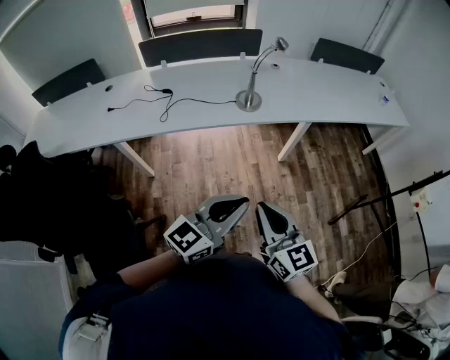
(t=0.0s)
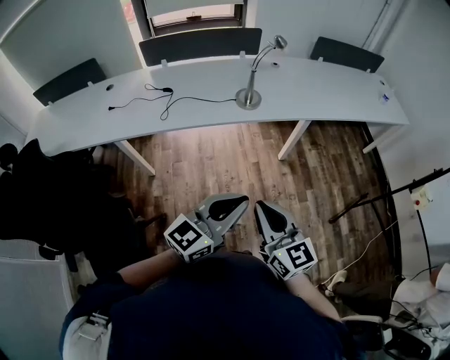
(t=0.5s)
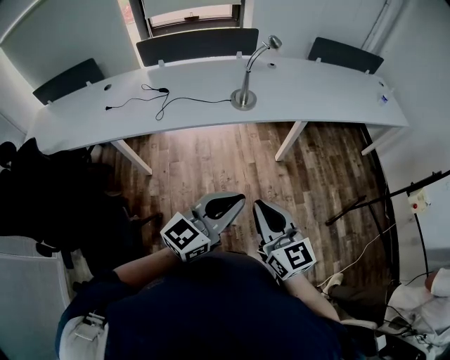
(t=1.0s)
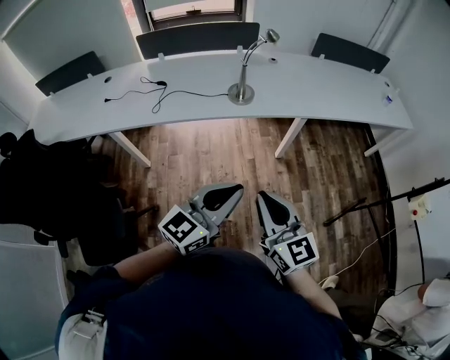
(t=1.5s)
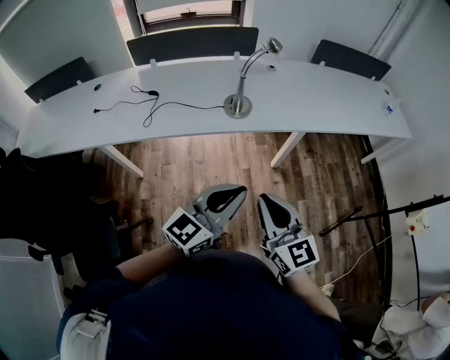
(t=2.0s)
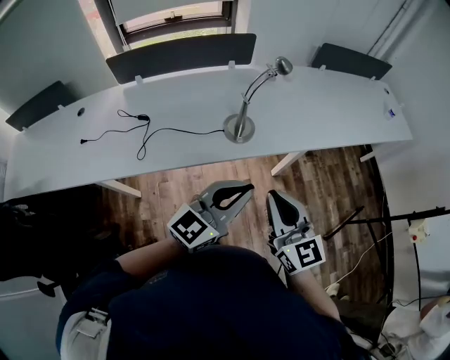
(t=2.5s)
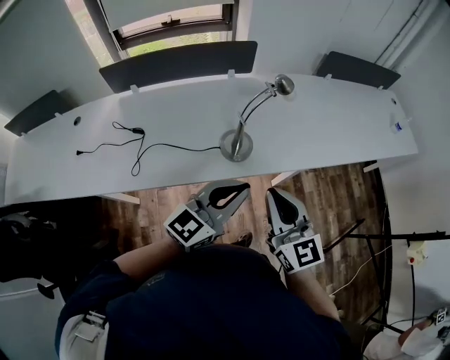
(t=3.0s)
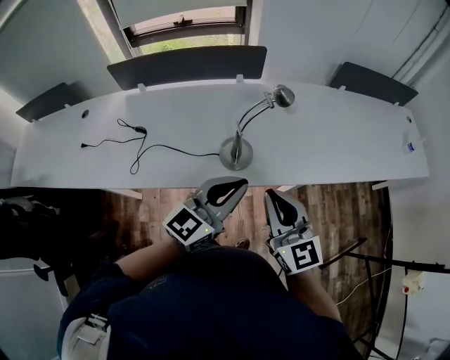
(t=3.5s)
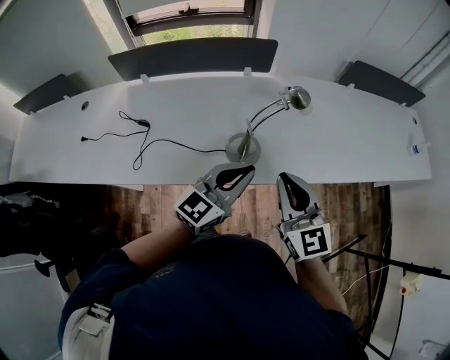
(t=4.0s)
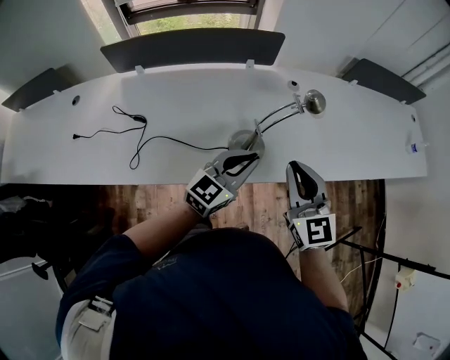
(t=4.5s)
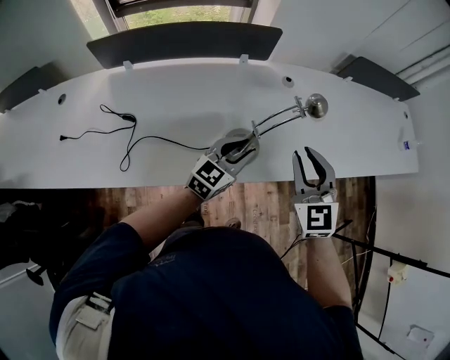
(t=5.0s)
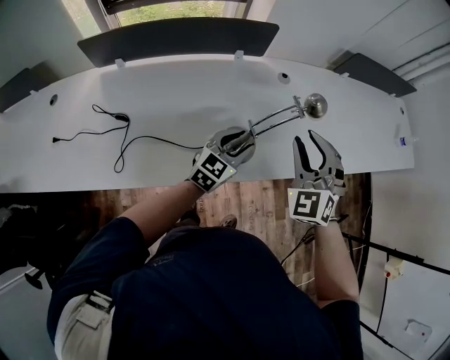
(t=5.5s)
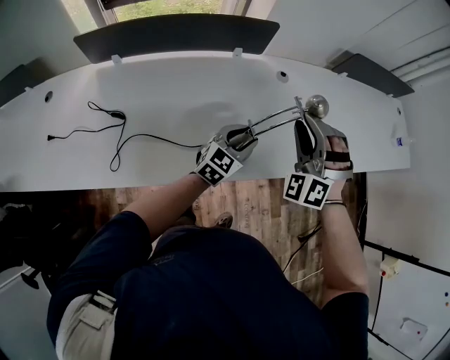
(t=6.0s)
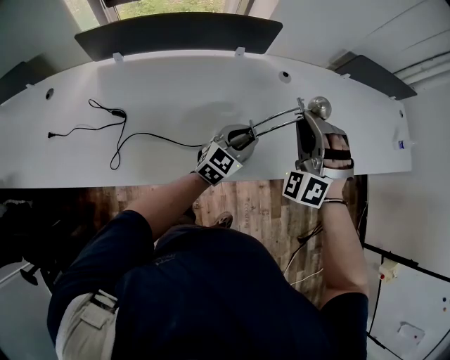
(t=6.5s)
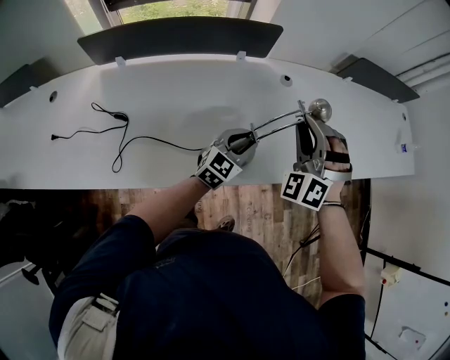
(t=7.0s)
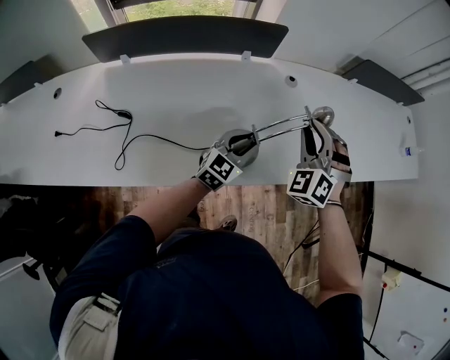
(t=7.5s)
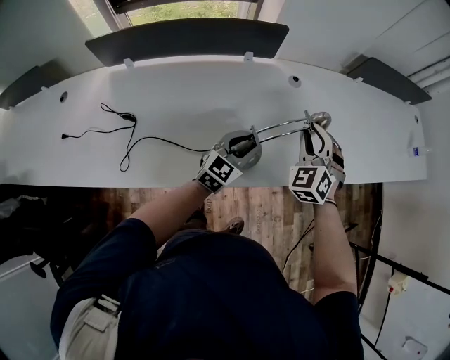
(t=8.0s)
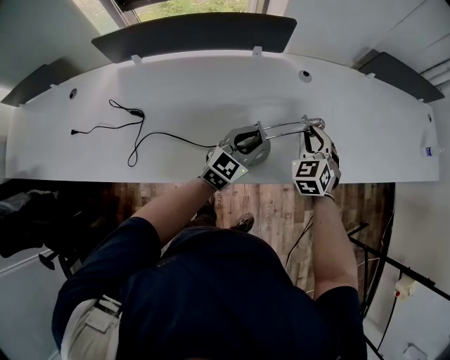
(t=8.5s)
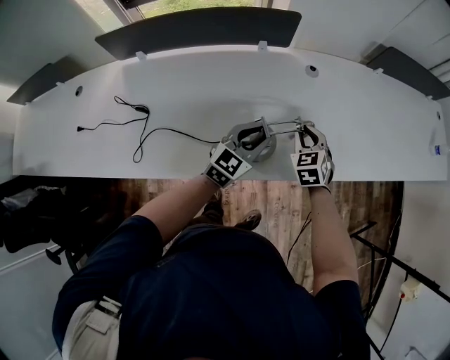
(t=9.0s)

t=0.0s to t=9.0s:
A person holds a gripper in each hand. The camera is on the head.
t=0.0s to t=2.0s: The right gripper is displaced forward and to the right by some 15 cm. Meanwhile the left gripper heads forward, covering about 15 cm.
t=2.0s to t=4.5s: The two grippers travel together, forward, about 40 cm.
t=4.5s to t=7.0s: The left gripper heads forward and downward, covering some 15 cm, and opens up; the right gripper travels forward by roughly 15 cm, twists about 70 degrees counterclockwise, seen from behind, and opens up.
t=7.0s to t=9.0s: The right gripper shifts roughly 20 cm downward, and rotates around the line of its fingers by some 50 degrees, clockwise from behind.

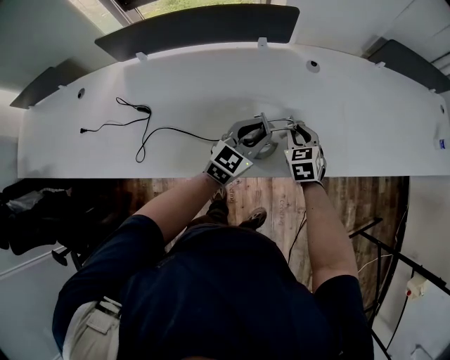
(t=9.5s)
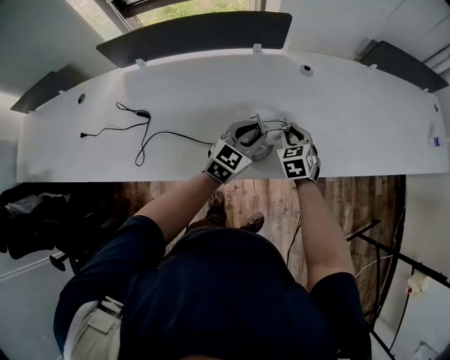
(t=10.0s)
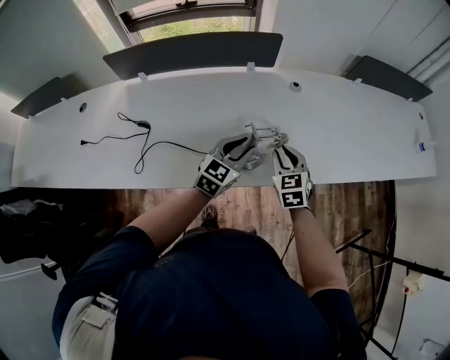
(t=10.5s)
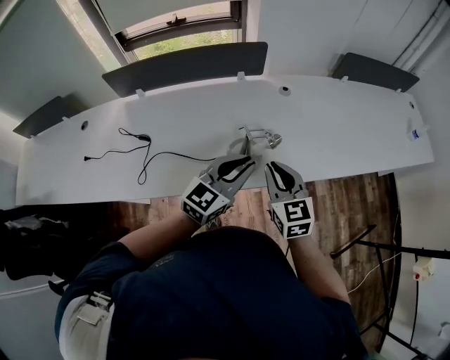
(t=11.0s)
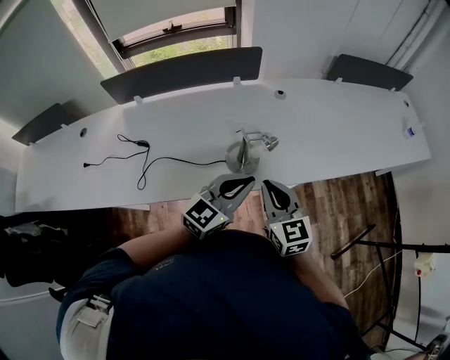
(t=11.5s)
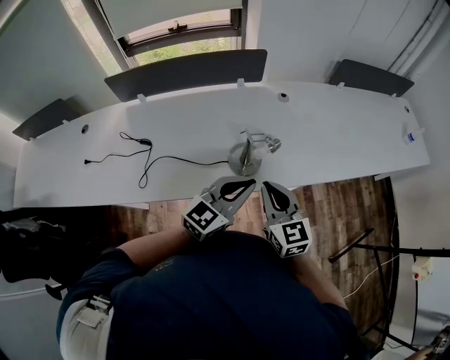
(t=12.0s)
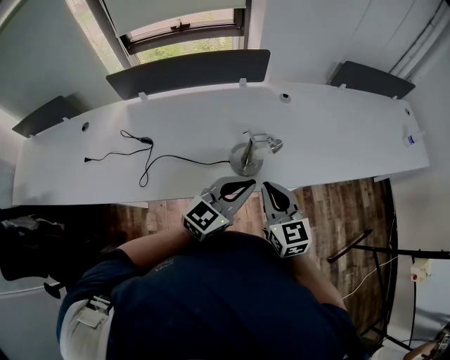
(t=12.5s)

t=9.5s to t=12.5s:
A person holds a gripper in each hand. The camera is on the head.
t=9.5s to t=11.0s: Both grippers travel together upward and backward, about 20 cm. The right gripper changes its angle by approximately 30 degrees.
t=11.0s to t=12.5s: The grippers both shift backward by roughly 5 cm.

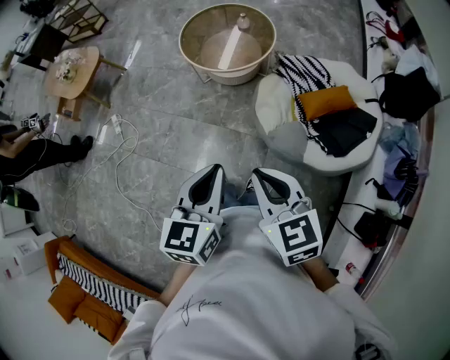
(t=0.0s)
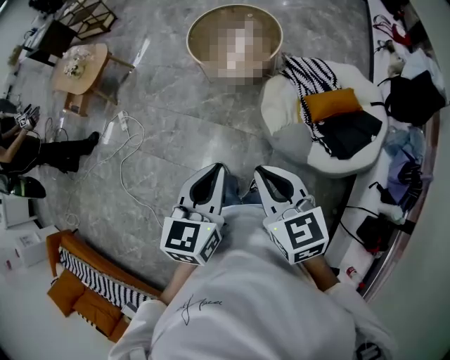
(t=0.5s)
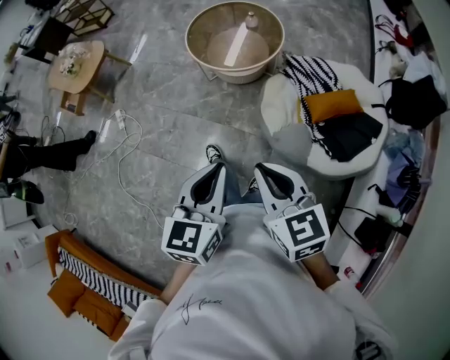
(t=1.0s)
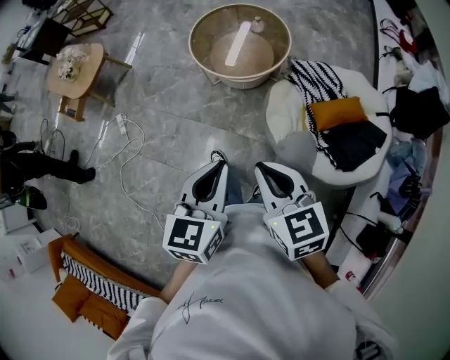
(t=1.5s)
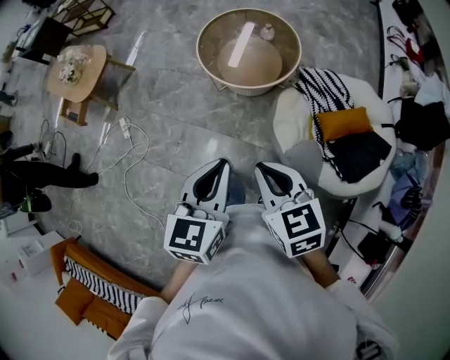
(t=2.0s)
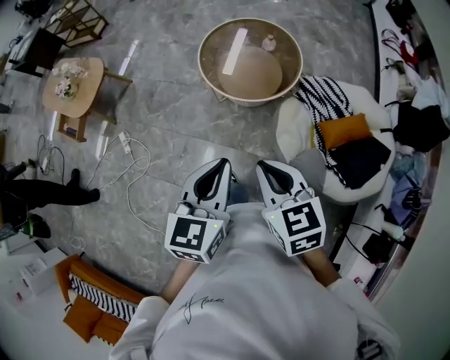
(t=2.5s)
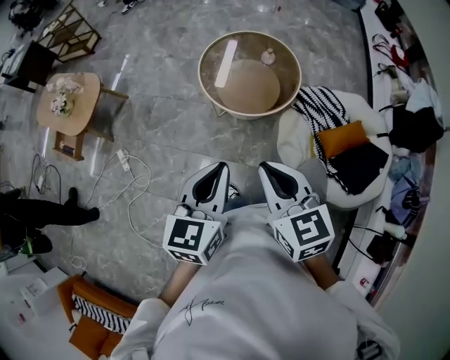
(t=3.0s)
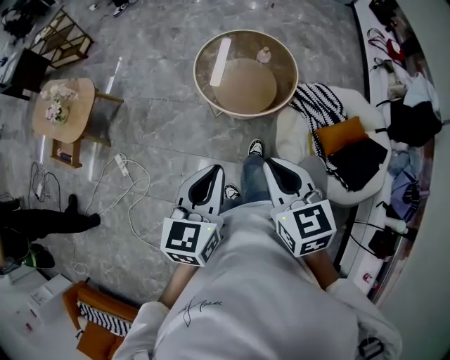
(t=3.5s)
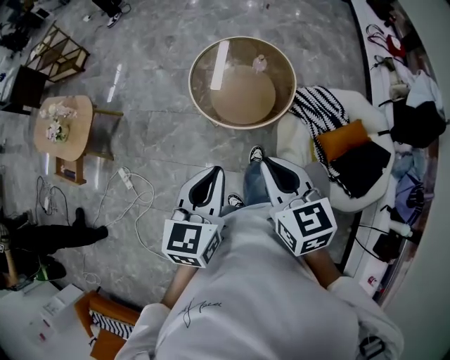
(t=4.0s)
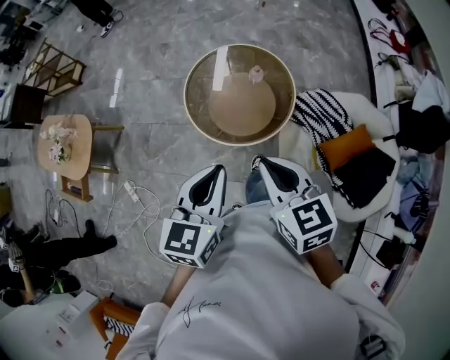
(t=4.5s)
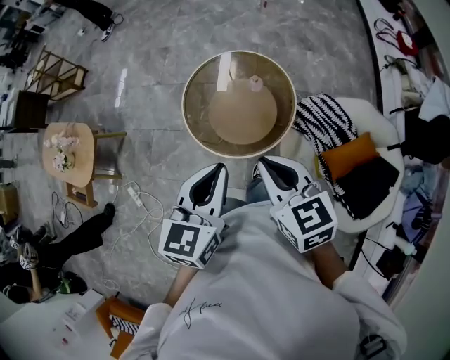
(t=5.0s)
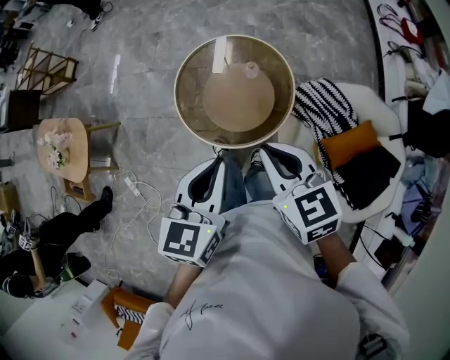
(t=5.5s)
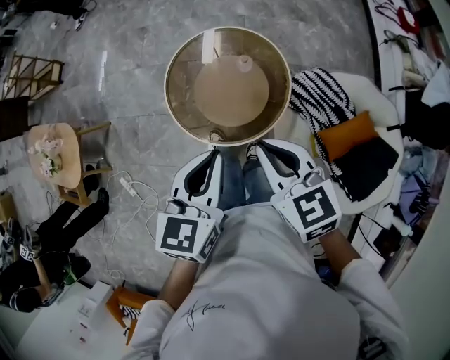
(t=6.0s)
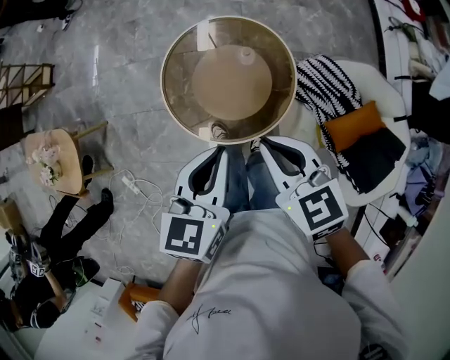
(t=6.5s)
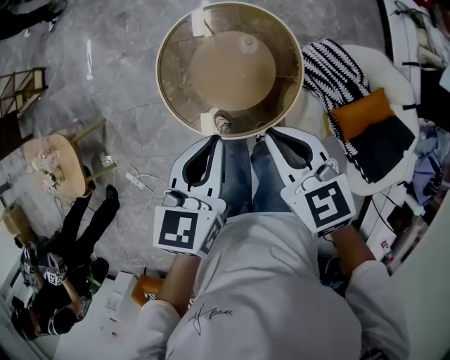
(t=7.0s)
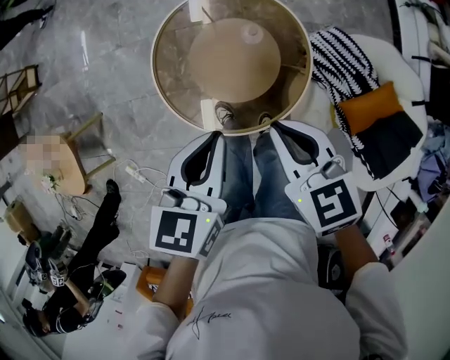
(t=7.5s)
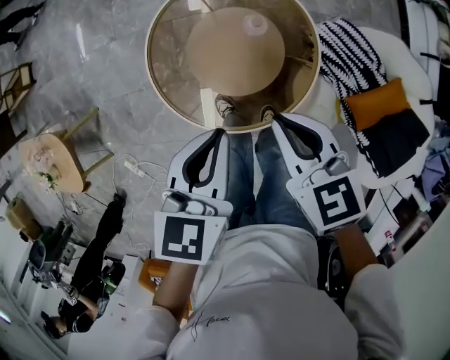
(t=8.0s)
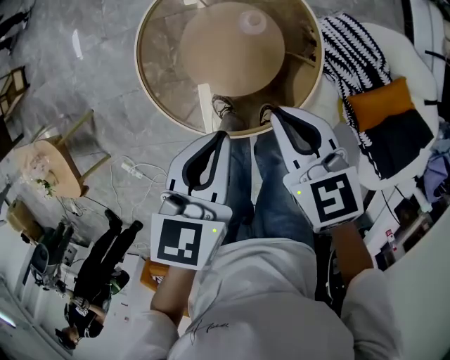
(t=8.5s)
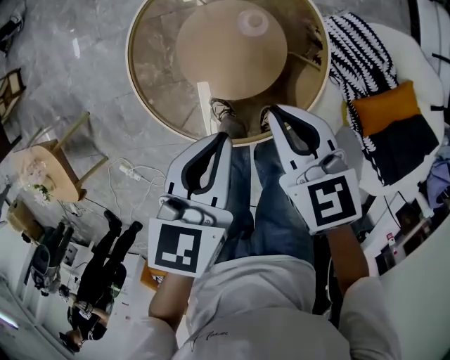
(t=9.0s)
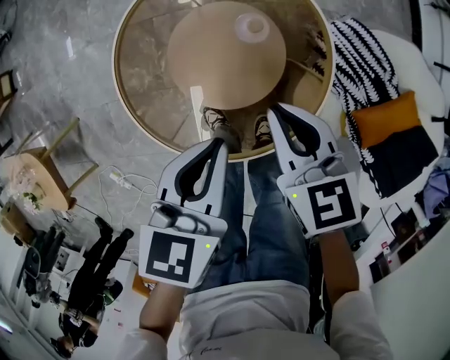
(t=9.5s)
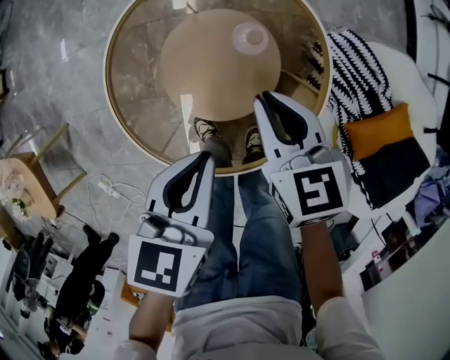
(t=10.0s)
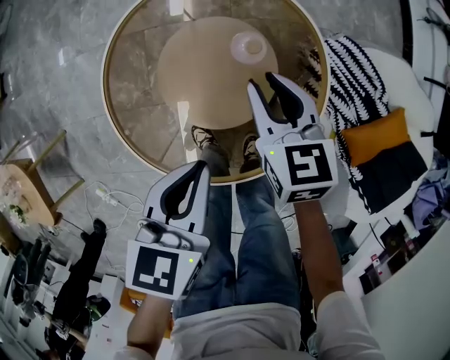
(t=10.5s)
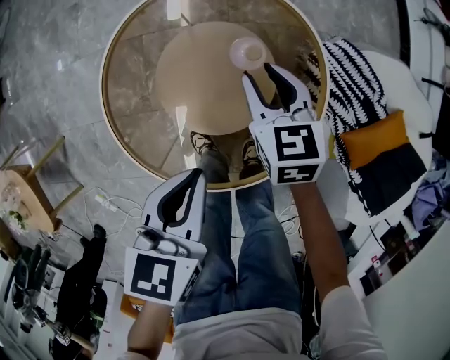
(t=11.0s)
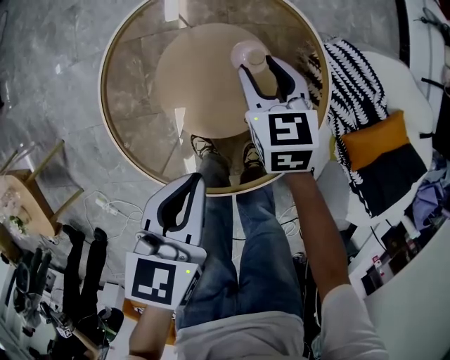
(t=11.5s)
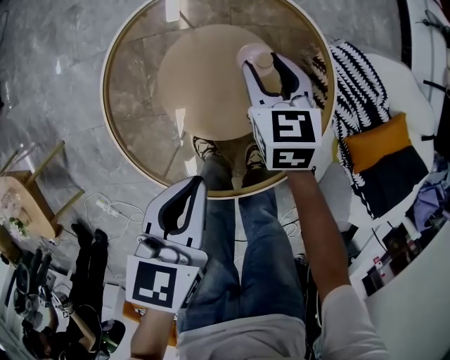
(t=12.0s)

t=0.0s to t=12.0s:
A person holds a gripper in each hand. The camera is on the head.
t=0.0s to t=2.0s: The two grippers go approximately 15 cm forward.
t=2.0s to t=4.0s: The right gripper goes approximately 20 cm forward. Meanwhile the left gripper moves forward and to the left, roughly 20 cm.
t=4.0s to t=6.0s: The left gripper moves forward and to the right, some 25 cm. Meanwhile the right gripper travels forward by some 25 cm.
t=6.0s to t=8.0s: Both grippers move downward and forward, about 20 cm.
t=8.0s to t=10.0s: The right gripper heads downward and forward, covering roughly 20 cm, while the left gripper shifts some 15 cm downward.
t=10.0s to t=12.0s: The right gripper shifts roughly 15 cm downward and forward, and opens its fingers.

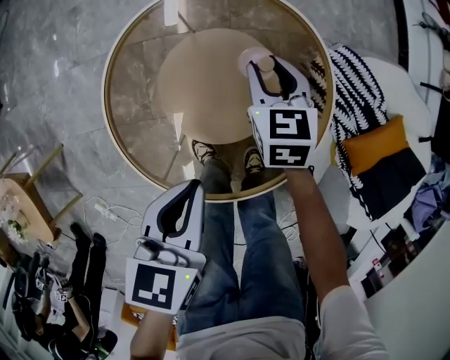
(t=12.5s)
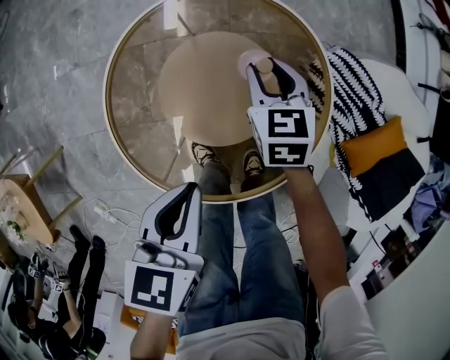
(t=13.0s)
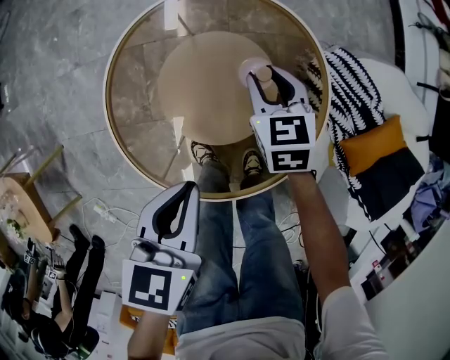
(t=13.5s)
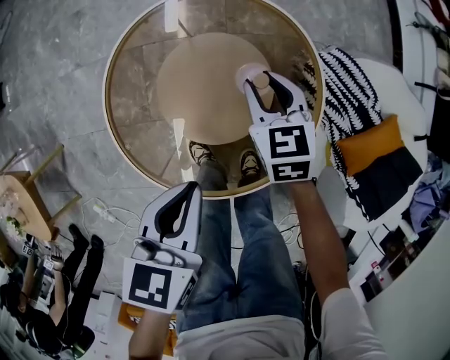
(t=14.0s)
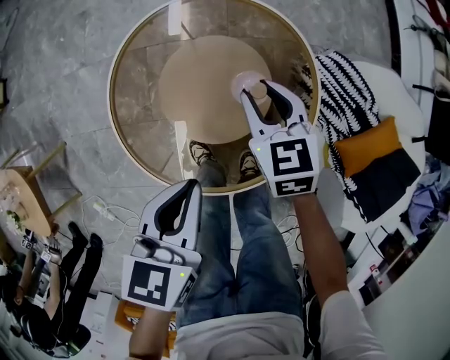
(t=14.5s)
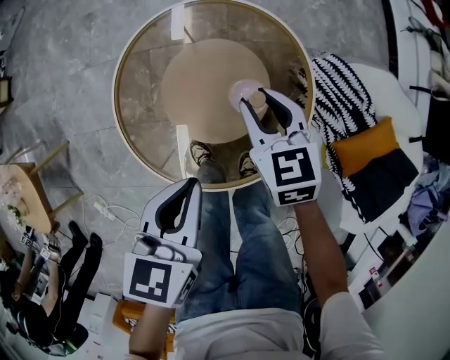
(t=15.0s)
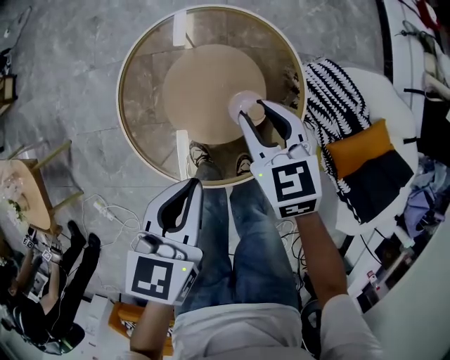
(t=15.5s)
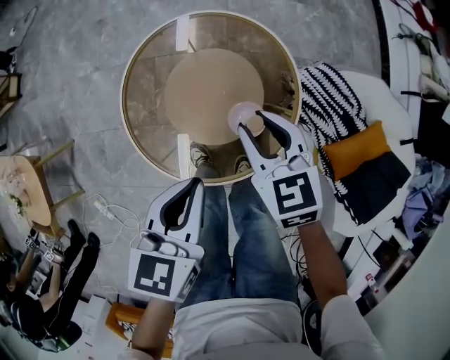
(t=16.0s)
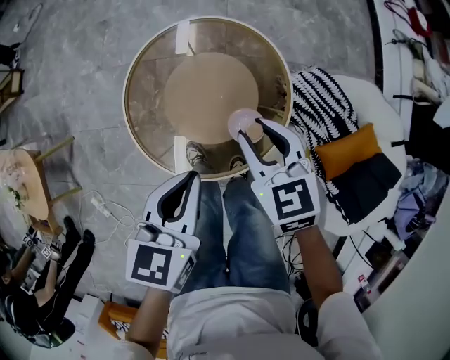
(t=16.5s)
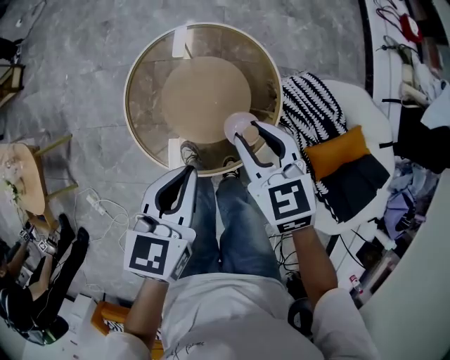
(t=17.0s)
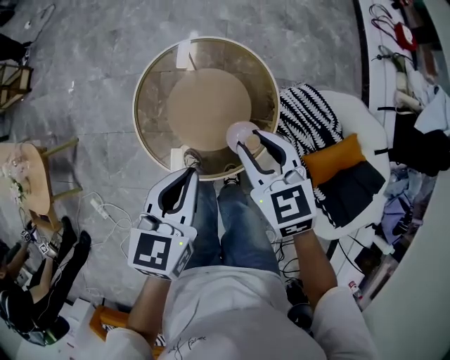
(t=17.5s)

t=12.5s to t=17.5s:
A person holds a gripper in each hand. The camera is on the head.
t=12.5s to t=15.0s: The right gripper is displaced upward and backward by roughly 15 cm; the left gripper goes about 5 cm upward.
t=15.0s to t=17.5s: The right gripper travels upward and backward by about 20 cm, while the left gripper heads upward, covering about 15 cm.
